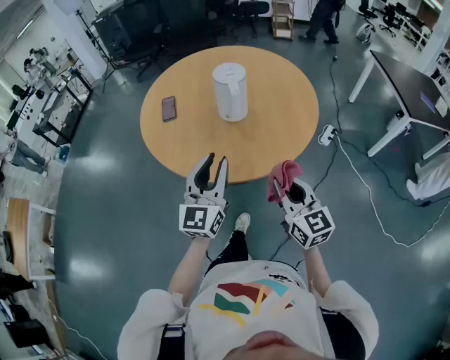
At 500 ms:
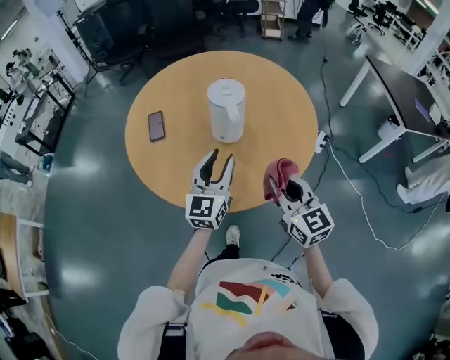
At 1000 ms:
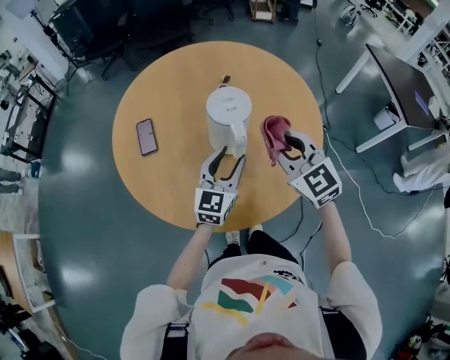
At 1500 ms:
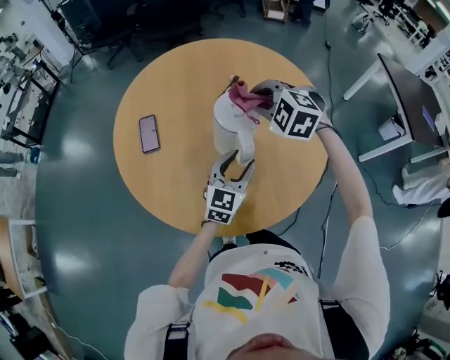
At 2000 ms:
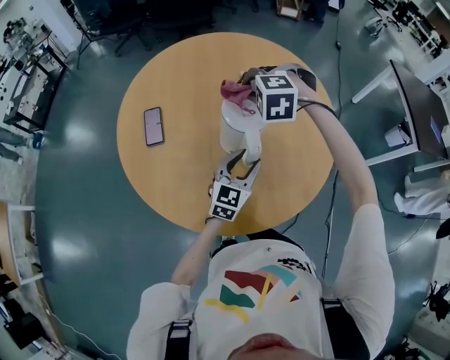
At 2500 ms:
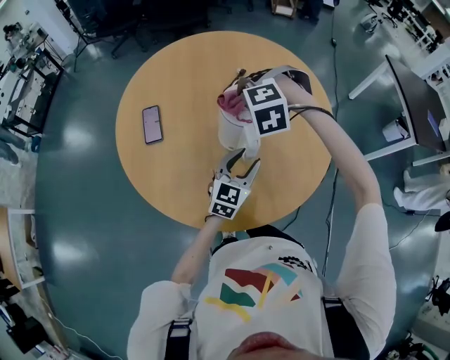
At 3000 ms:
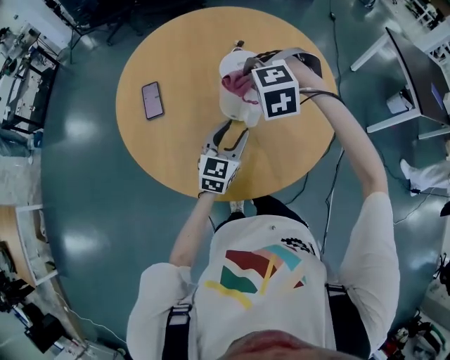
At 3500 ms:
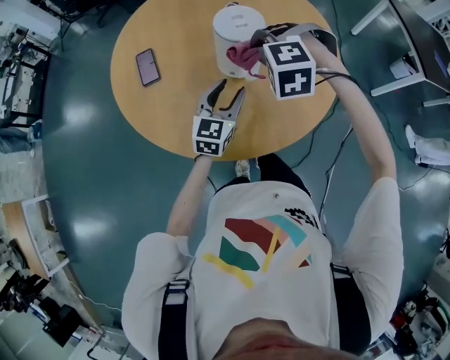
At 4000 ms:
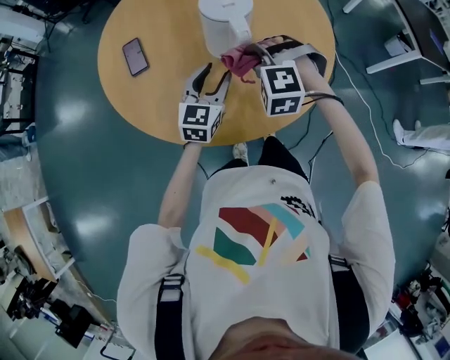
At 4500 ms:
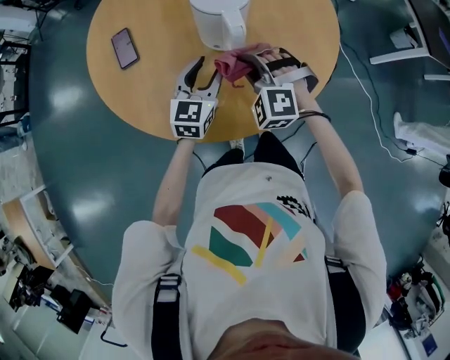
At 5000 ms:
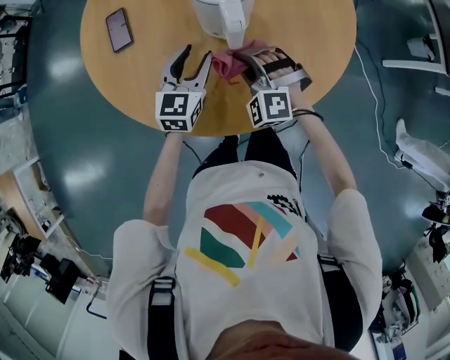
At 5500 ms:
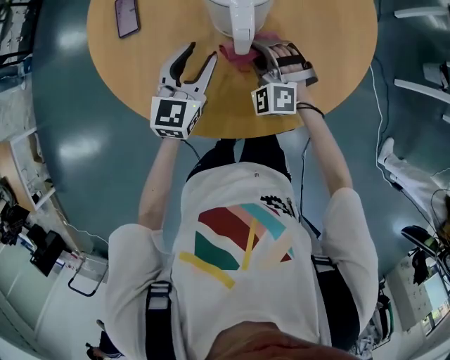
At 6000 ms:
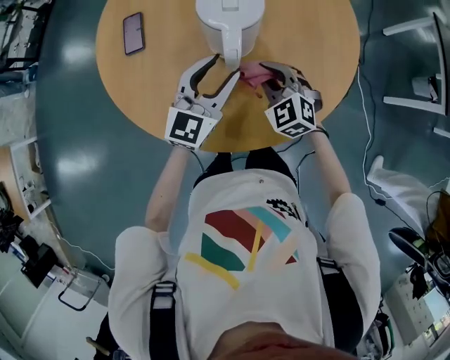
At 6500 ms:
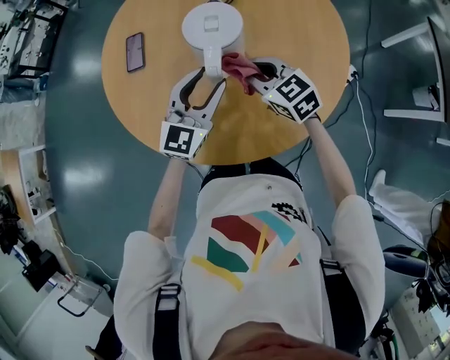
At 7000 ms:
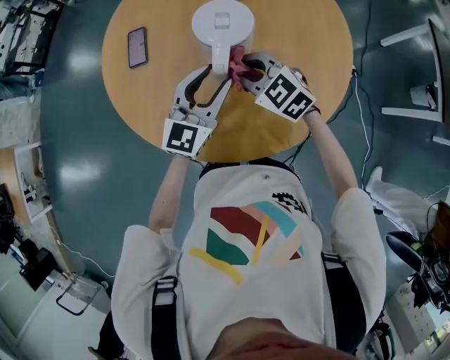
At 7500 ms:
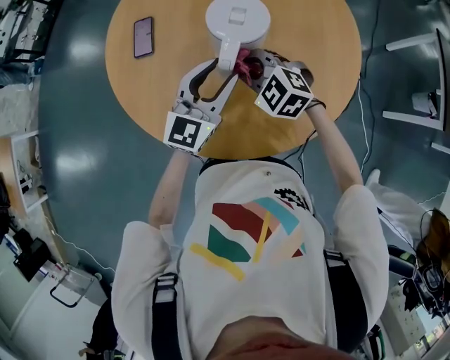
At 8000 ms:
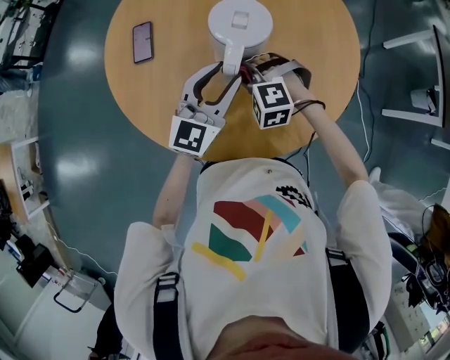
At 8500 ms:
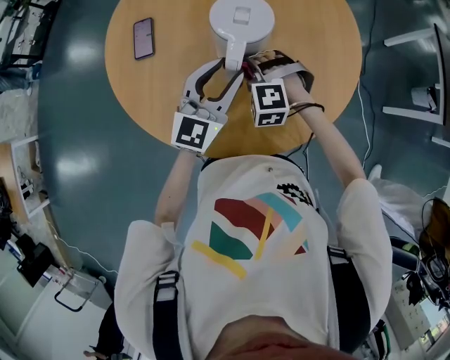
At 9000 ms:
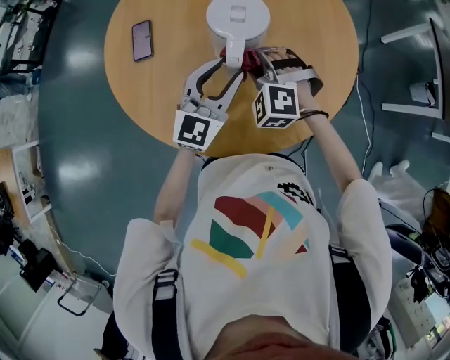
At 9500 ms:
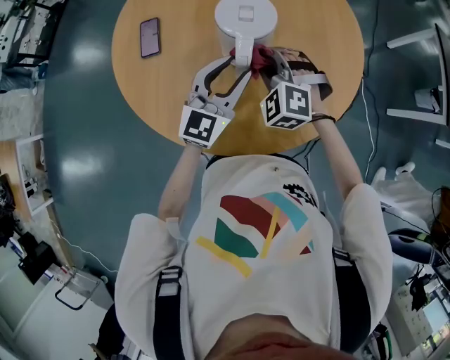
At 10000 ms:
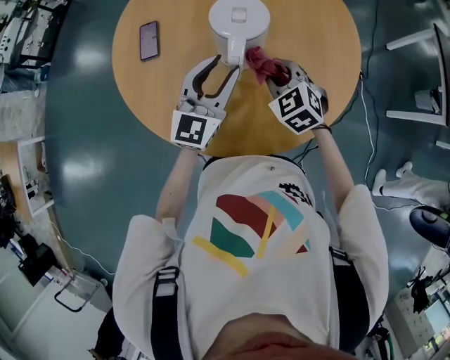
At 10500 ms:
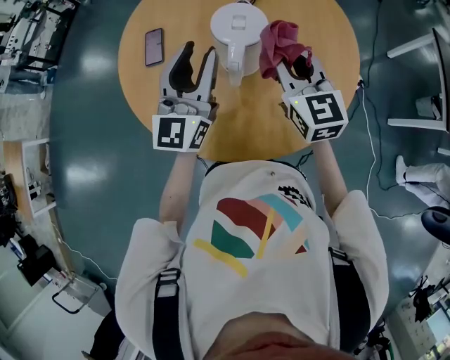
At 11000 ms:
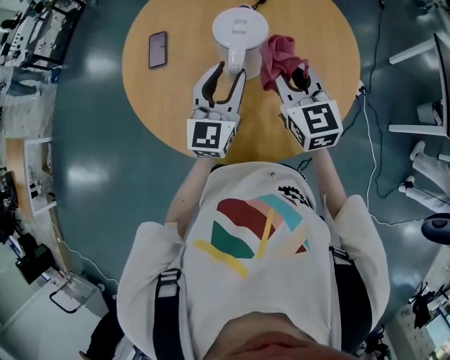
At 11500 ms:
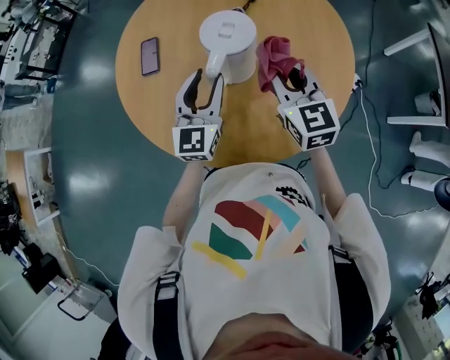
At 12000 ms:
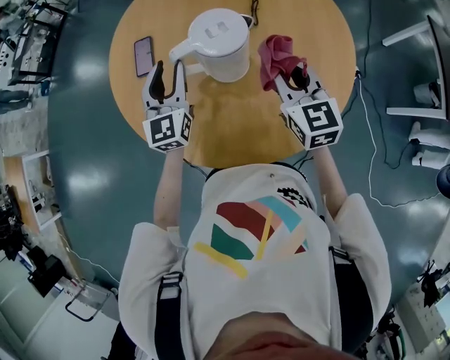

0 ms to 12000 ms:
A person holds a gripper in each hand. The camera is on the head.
0 ms to 2000 ms: The right gripper goes about 60 cm forward, and points its fingers approximately 50 degrees further downward; the left gripper goes about 40 cm forward and downward, changes its angle by approximately 30 degrees, and opens its fingers.
2000 ms to 4000 ms: The left gripper travels backward and to the left by about 10 cm. Meanwhile the right gripper shifts roughly 20 cm backward.
4000 ms to 6000 ms: The left gripper shifts some 10 cm to the right and forward, and goes downward and returns, about 5 cm each way. The right gripper shifts roughly 15 cm downward, forward and to the right, and changes its angle by some 40 degrees.
6000 ms to 8000 ms: The right gripper is displaced to the left by some 5 cm, and rotates approximately 40 degrees, while the left gripper moves approximately 5 cm.
8000 ms to 10000 ms: The right gripper goes about 5 cm to the right, and twists approximately 50 degrees clockwise, seen from behind.
10000 ms to 12000 ms: The left gripper moves left and right over about 10 cm, changing direction 2 times, and changes its angle by approximately 20 degrees; the right gripper moves upward, approximately 10 cm, and rotates about 30 degrees.

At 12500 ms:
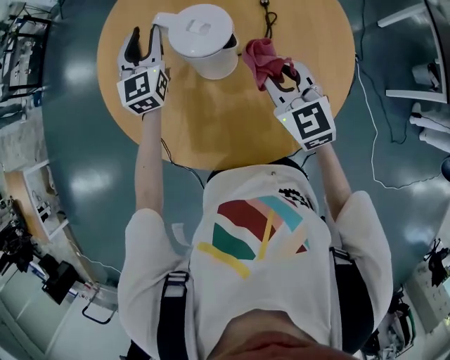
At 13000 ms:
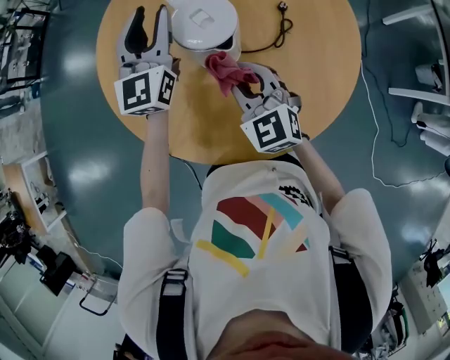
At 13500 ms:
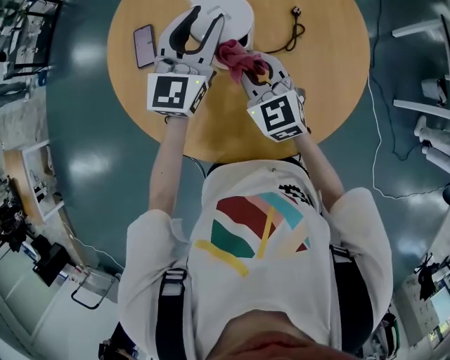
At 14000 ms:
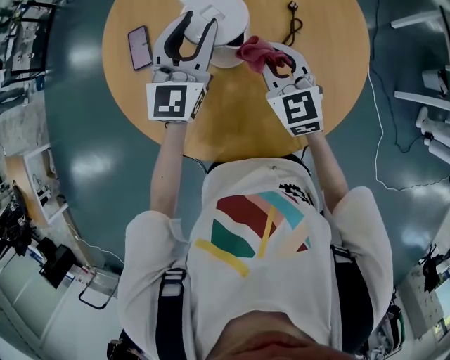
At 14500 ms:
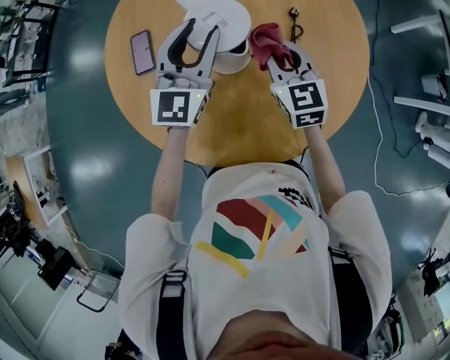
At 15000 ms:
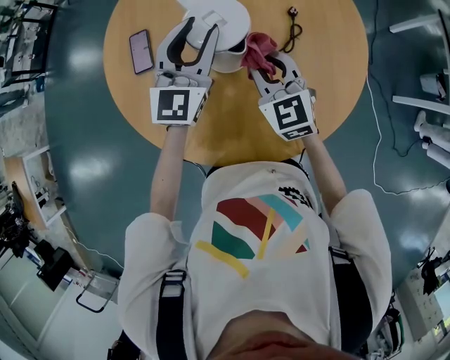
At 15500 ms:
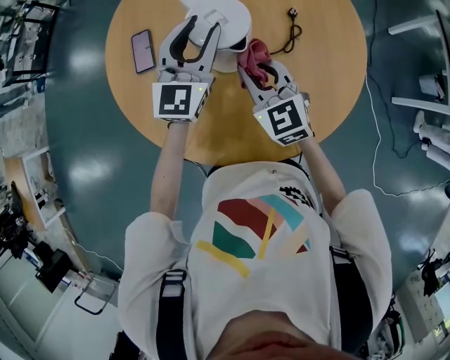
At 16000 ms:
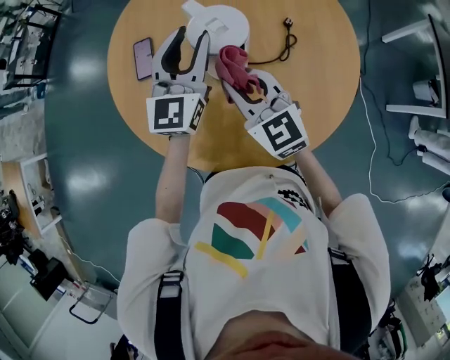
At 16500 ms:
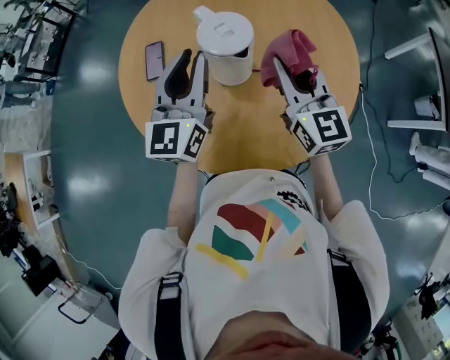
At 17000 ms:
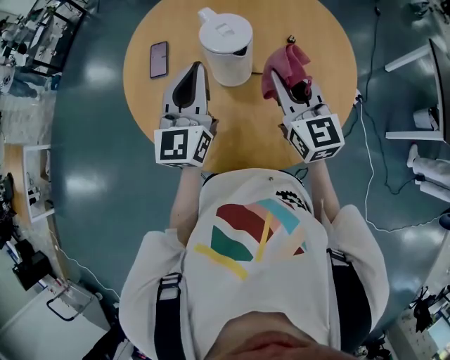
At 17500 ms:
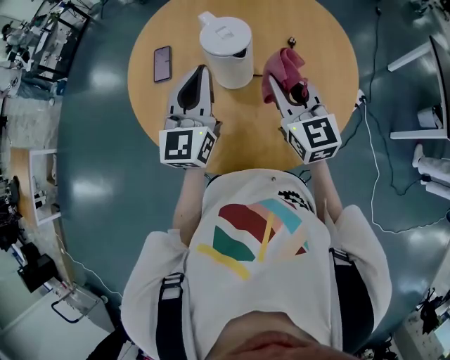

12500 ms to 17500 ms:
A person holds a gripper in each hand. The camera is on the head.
12500 ms to 15000 ms: The left gripper shifts about 10 cm to the right and backward. The right gripper swings left and right, approximately 10 cm each way, with 2 reversals.
15000 ms to 17500 ms: The two grippers go about 15 cm backward and upward. The left gripper closes.

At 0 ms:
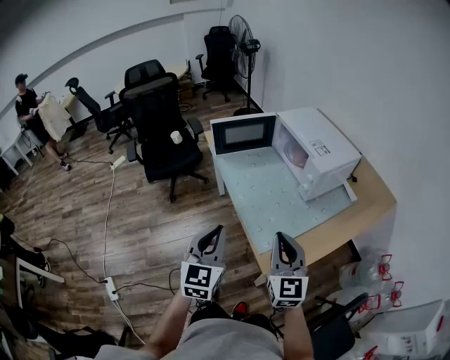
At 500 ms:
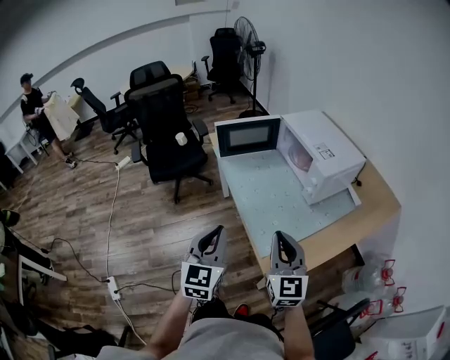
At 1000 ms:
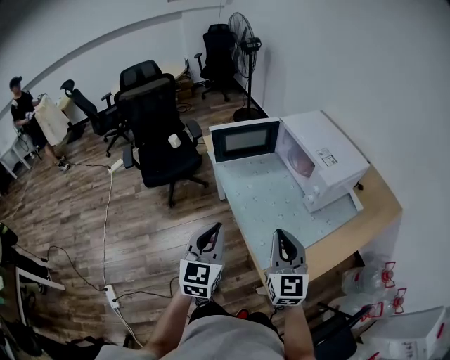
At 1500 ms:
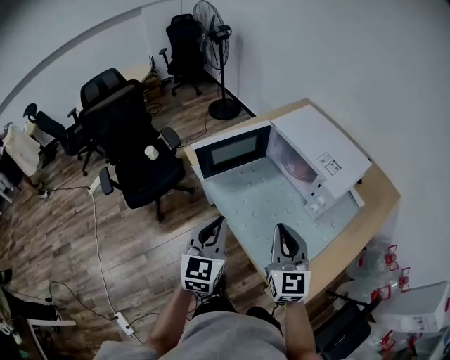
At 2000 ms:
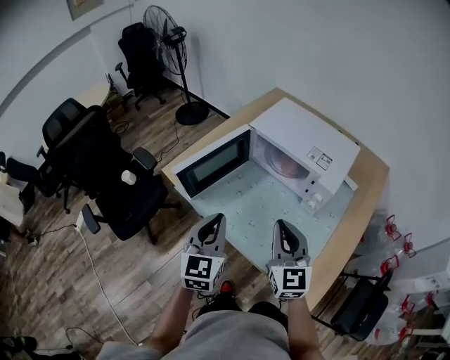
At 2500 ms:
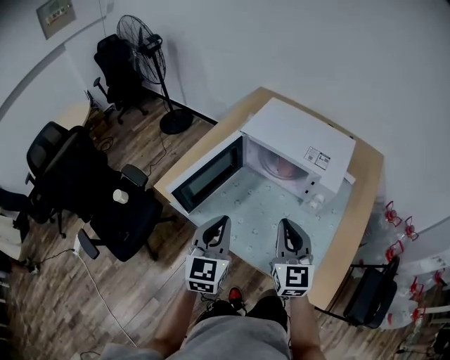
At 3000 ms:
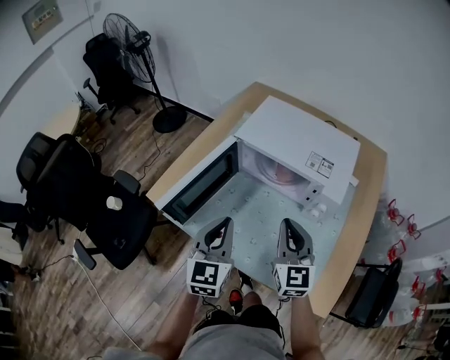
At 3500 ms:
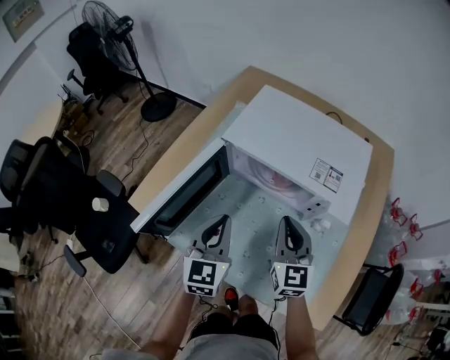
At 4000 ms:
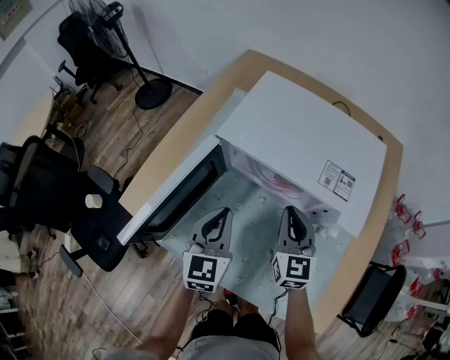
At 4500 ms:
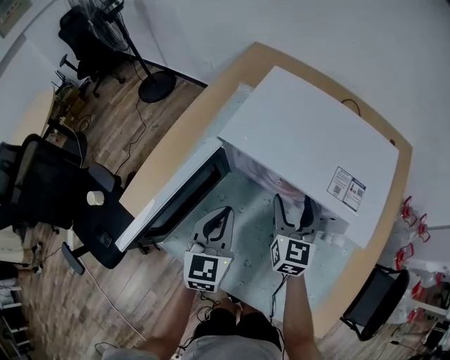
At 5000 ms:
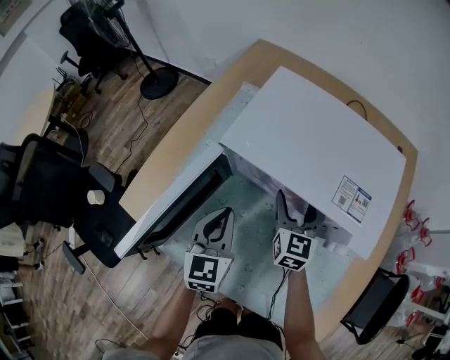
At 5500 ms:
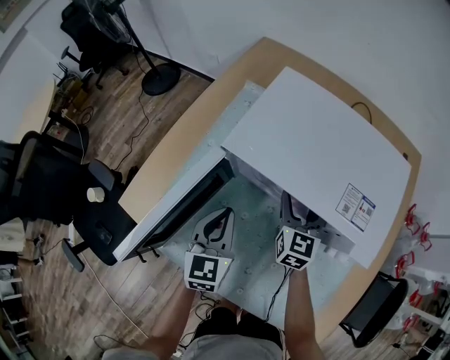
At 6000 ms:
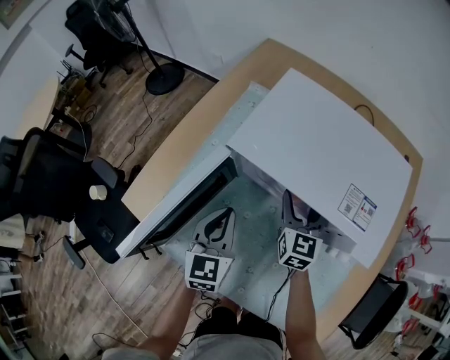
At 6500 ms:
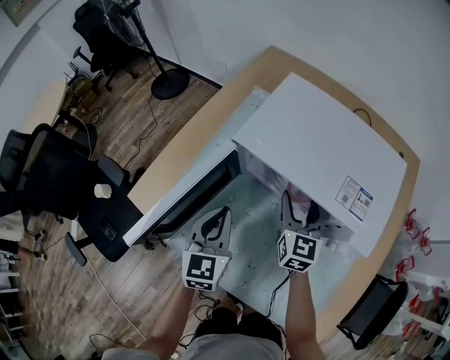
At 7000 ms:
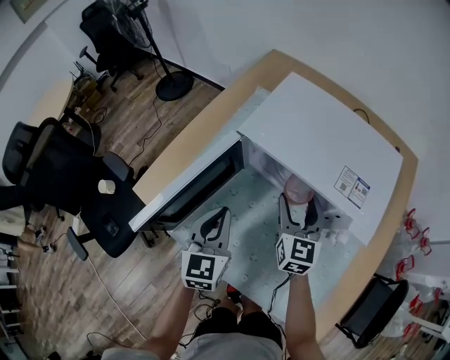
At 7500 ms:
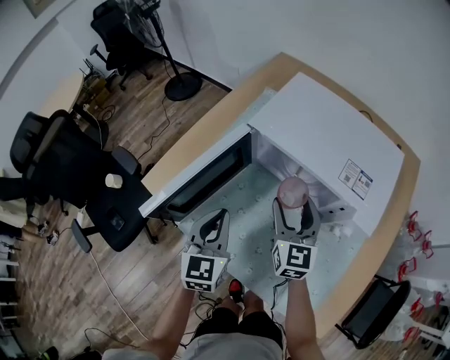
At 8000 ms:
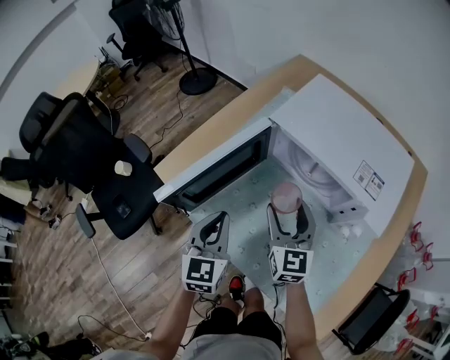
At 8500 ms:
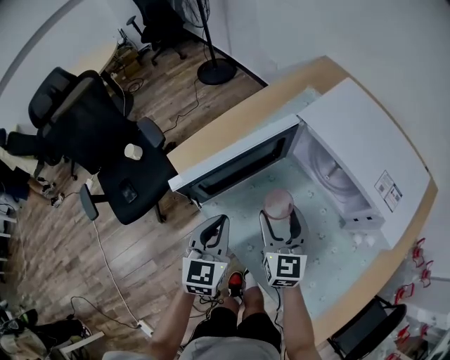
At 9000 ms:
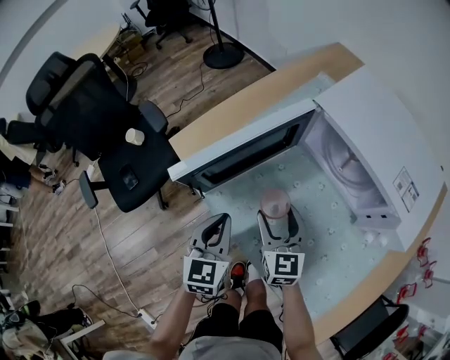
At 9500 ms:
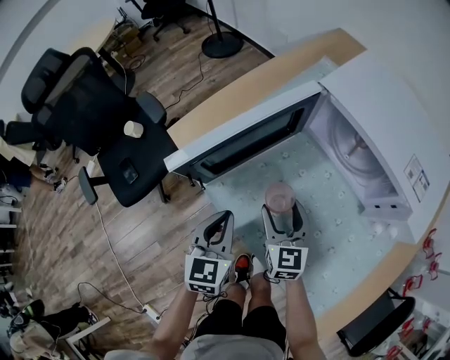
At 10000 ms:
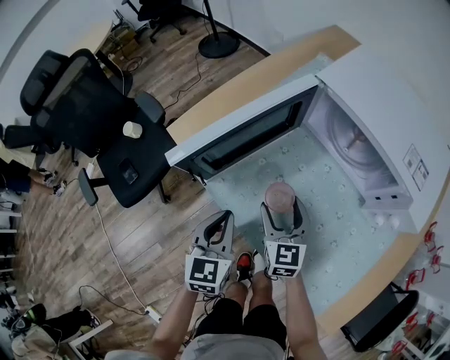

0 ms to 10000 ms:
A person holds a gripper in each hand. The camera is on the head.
0 ms to 2000 ms: The right gripper ends up approximately 25 cm from where it was, and swivels approximately 20 degrees; the left gripper changes place by roughly 35 cm, and changes its angle by roughly 20 degrees.
2000 ms to 4000 ms: The grippers both shift forward and downward by about 30 cm. The right gripper swivels approximately 20 degrees.
4000 ms to 6000 ms: The left gripper ends up some 5 cm from where it was. The right gripper goes about 10 cm forward and downward, and opens its fingers.
6000 ms to 8000 ms: The right gripper goes roughly 20 cm backward, to the left and upward, and changes its angle by roughly 20 degrees, while the left gripper travels backward and to the left by roughly 15 cm.
8000 ms to 10000 ms: The left gripper heads downward, backward and to the left, covering about 10 cm. Meanwhile the right gripper heads downward and to the left, covering about 15 cm.
